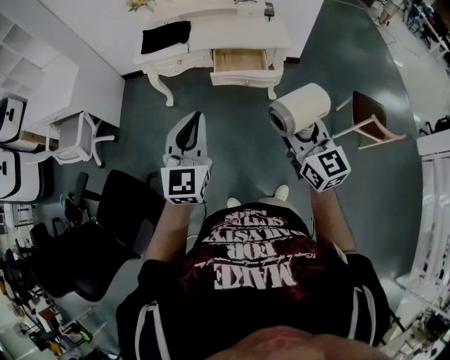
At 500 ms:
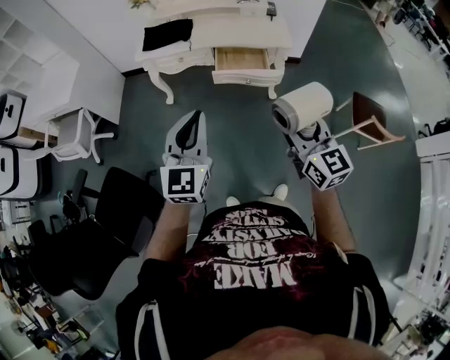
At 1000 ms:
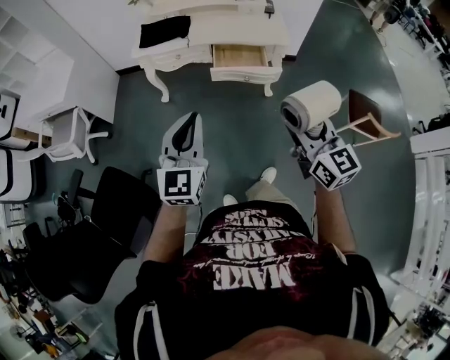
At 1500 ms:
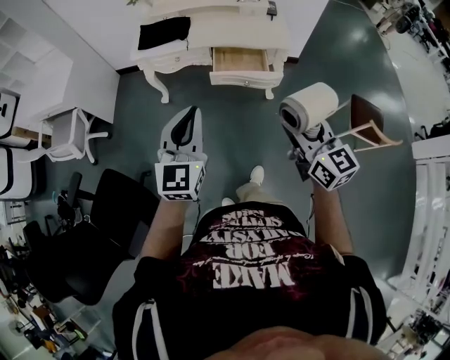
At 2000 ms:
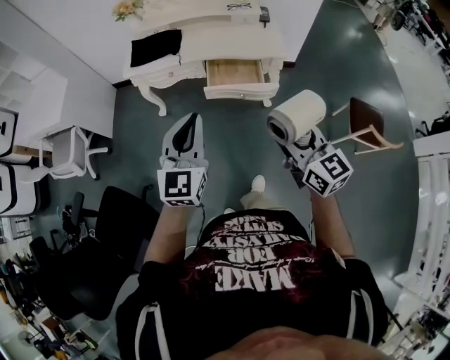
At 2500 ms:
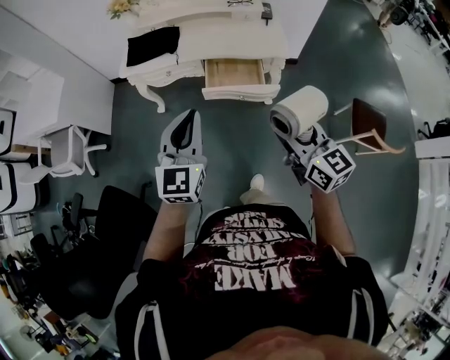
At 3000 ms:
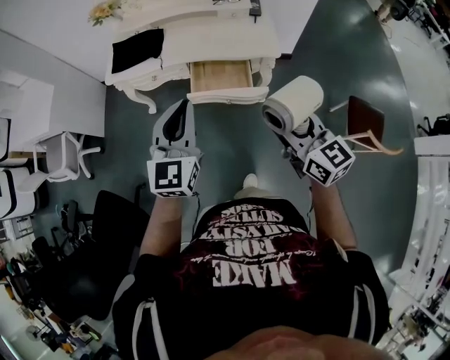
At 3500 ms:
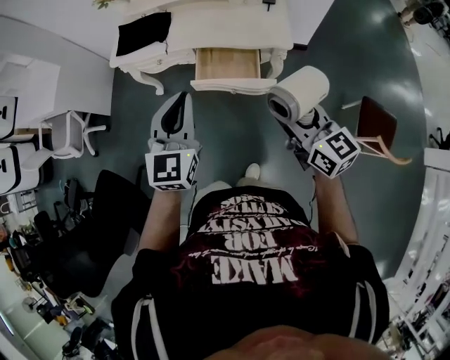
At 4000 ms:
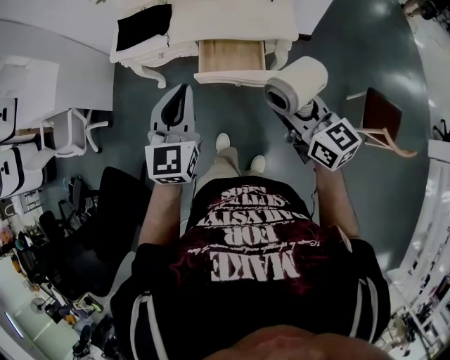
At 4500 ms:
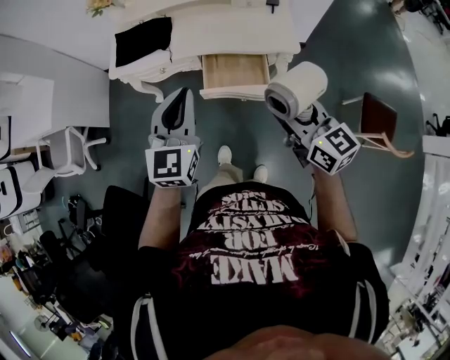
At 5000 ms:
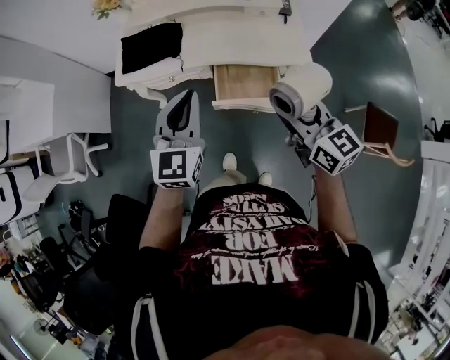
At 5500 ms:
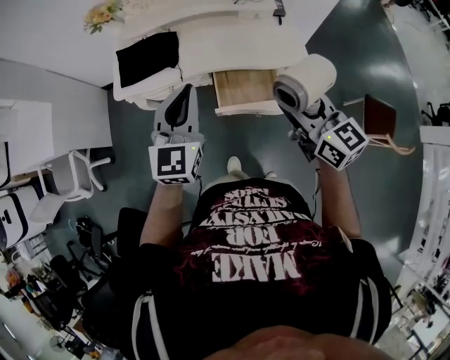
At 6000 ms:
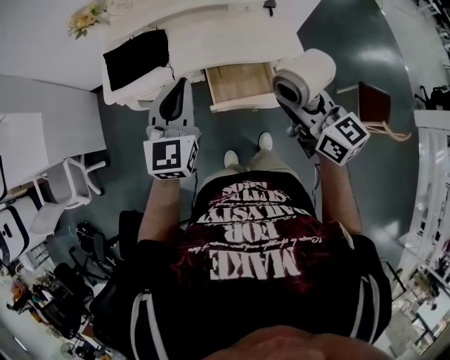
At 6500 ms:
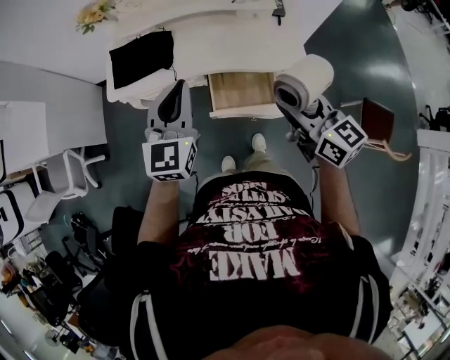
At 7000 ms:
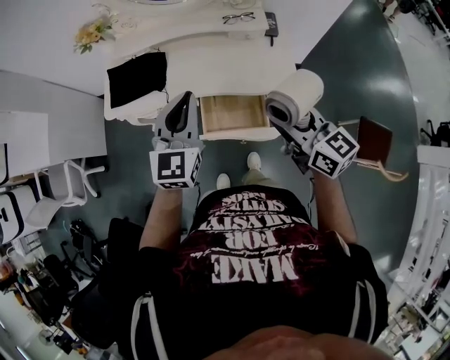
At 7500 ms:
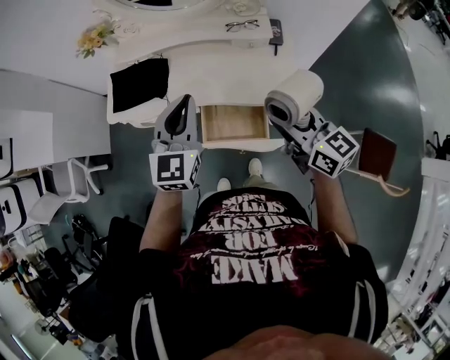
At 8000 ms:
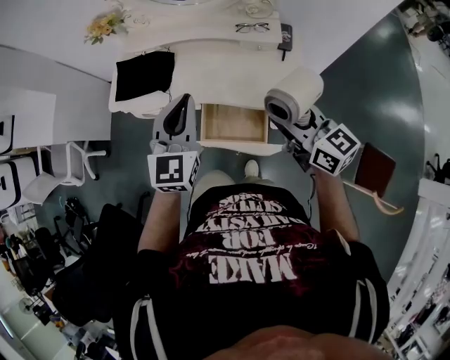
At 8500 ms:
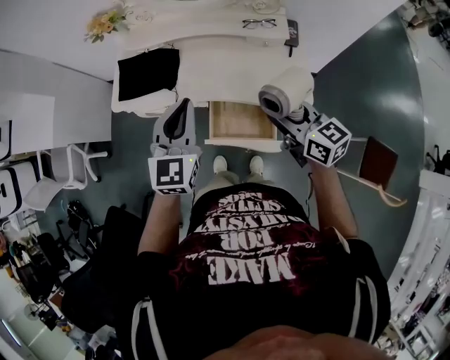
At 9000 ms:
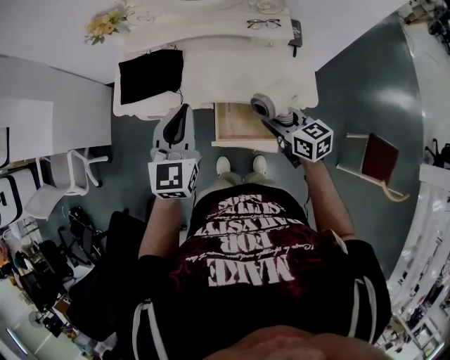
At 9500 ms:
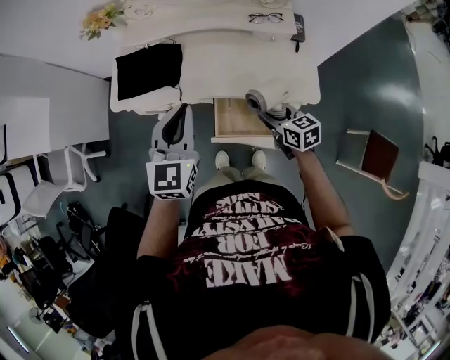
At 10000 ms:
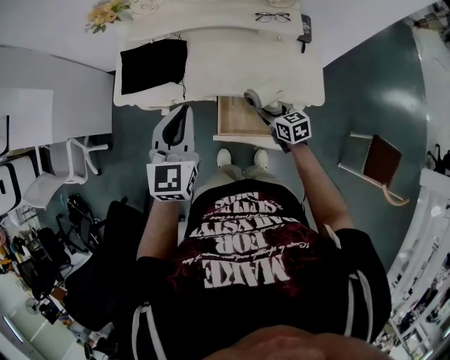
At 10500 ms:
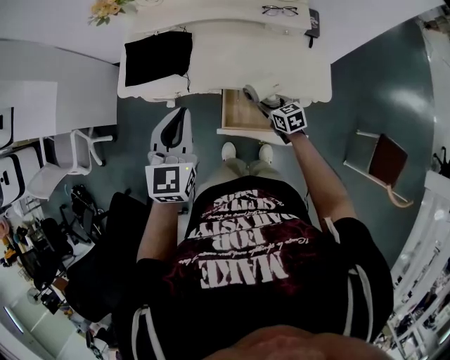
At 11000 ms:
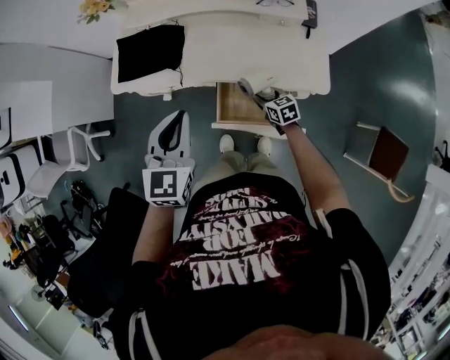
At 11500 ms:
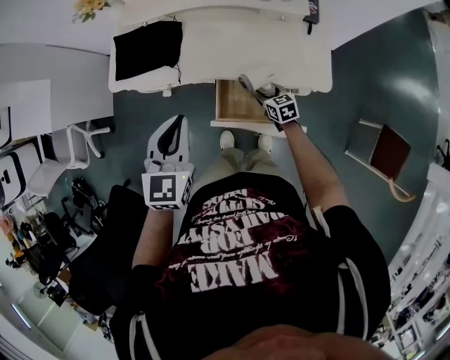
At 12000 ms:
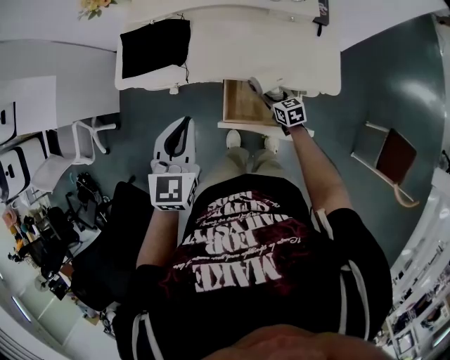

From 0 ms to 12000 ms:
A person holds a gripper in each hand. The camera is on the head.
From 0 ms to 2000 ms: Both grippers move forward, some 10 cm.
From 2000 ms to 4000 ms: The two grippers go about 15 cm forward and to the right.
From 4000 ms to 6000 ms: Both grippers move forward and to the left, approximately 20 cm.
From 6000 ms to 8000 ms: The two grippers go approximately 15 cm to the right and forward.
From 8000 ms to 10000 ms: The right gripper travels downward by roughly 30 cm, and swivels some 30 degrees, while the left gripper goes roughly 10 cm to the left and downward.
From 10000 ms to 12000 ms: The left gripper heads downward, covering about 5 cm. The right gripper is displaced downward by roughly 15 cm.

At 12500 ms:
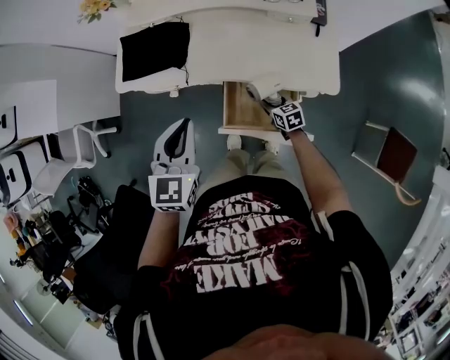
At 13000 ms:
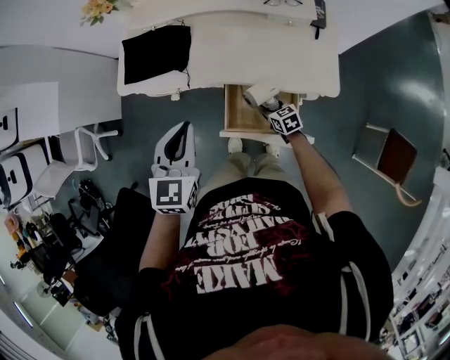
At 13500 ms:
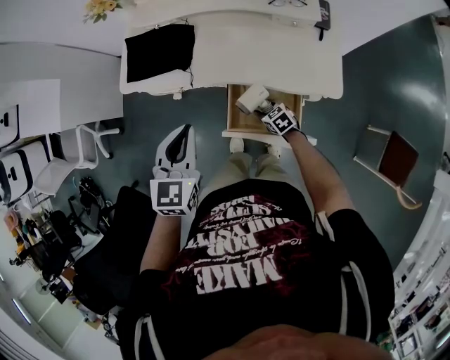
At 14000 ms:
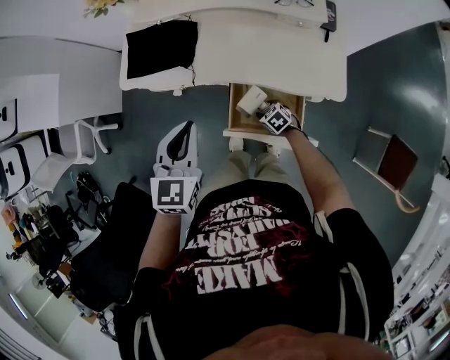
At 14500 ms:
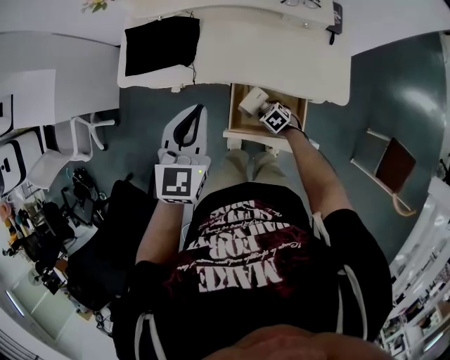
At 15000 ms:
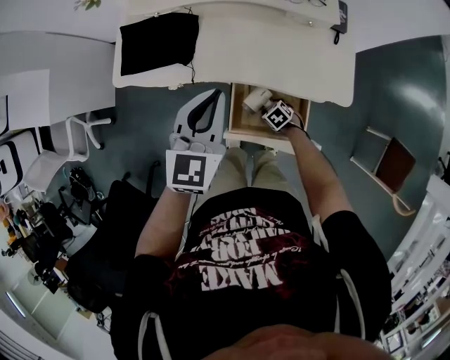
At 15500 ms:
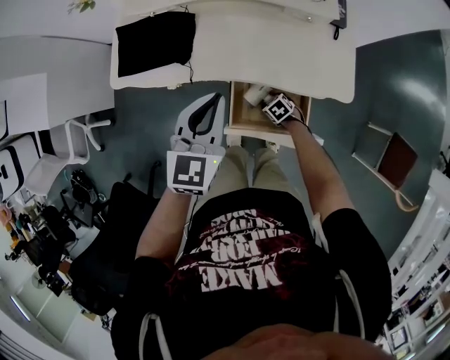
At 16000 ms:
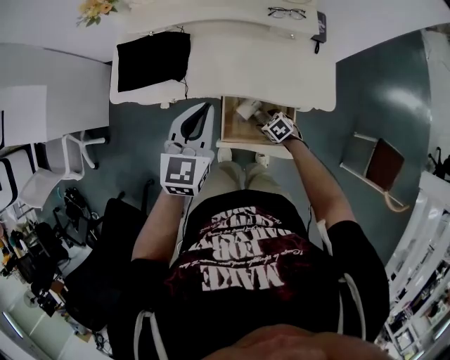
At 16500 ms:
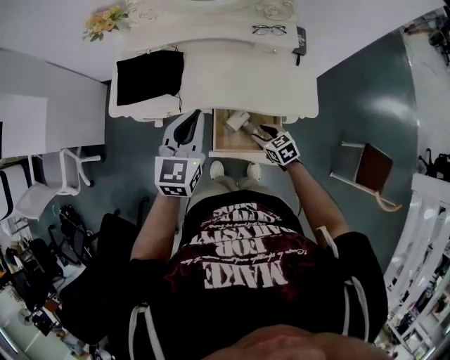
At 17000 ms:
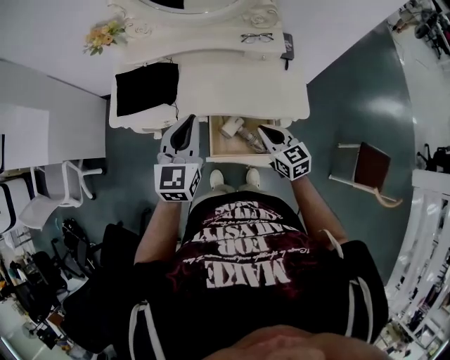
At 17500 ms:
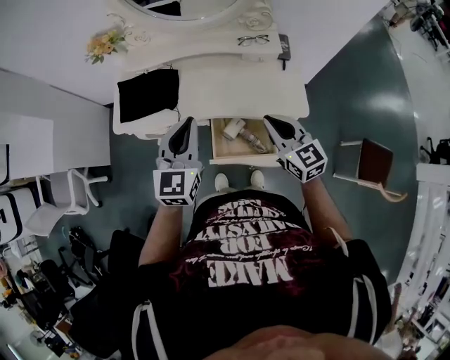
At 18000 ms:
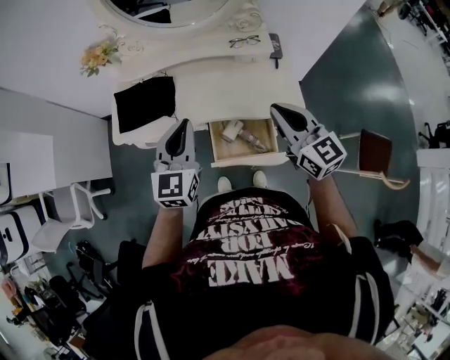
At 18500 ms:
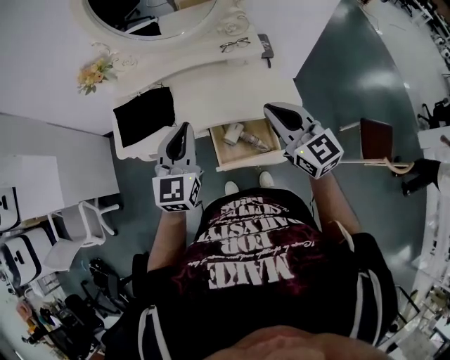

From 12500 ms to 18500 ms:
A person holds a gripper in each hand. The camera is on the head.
From 12500 ms to 14500 ms: The right gripper travels downward and to the left by approximately 10 cm, and rotates some 40 degrees.
From 14500 ms to 16500 ms: The right gripper goes about 15 cm upward, swivels approximately 20 degrees, and opens, then closes again.
From 16500 ms to 18500 ms: The right gripper goes about 35 cm upward, tips its fingers upward by approximately 40 degrees, and closes, while the left gripper goes approximately 10 cm upward.

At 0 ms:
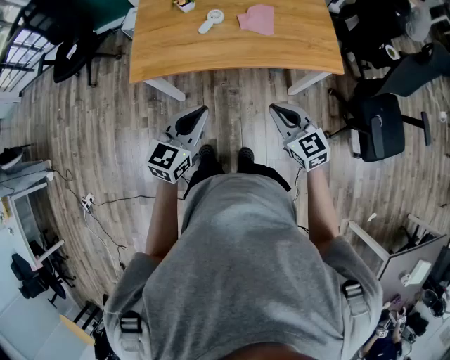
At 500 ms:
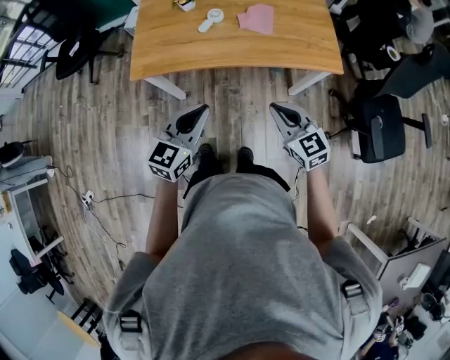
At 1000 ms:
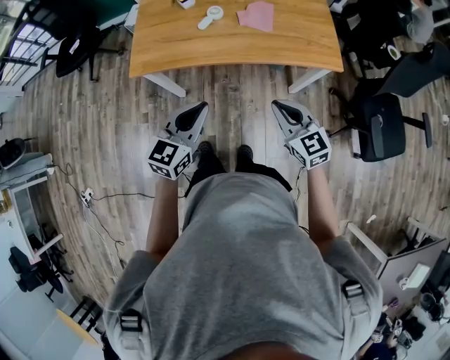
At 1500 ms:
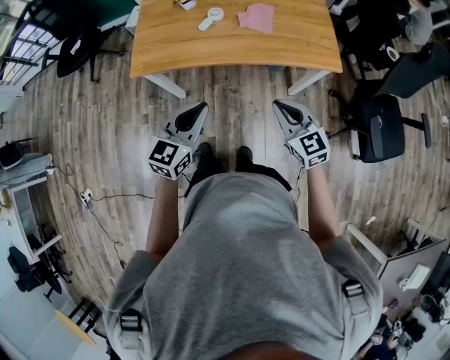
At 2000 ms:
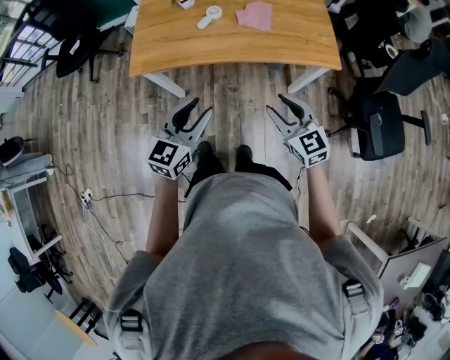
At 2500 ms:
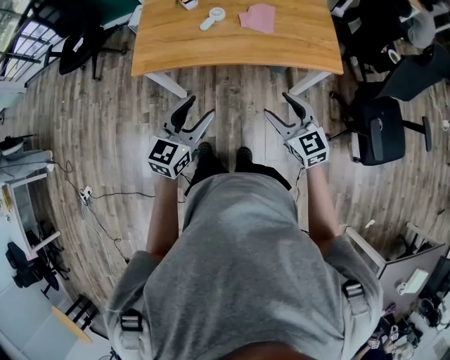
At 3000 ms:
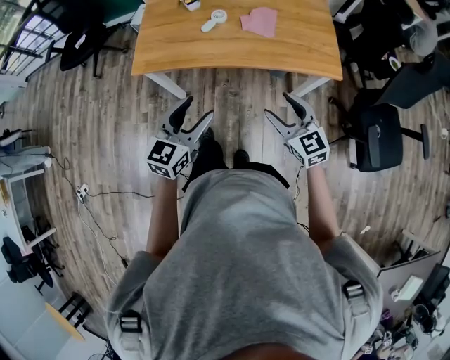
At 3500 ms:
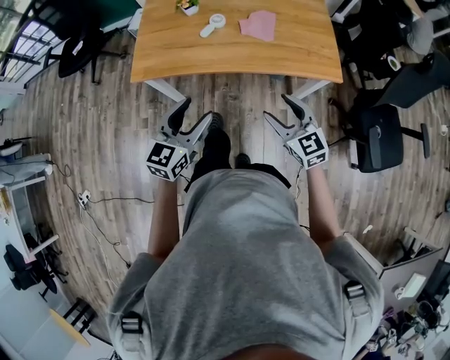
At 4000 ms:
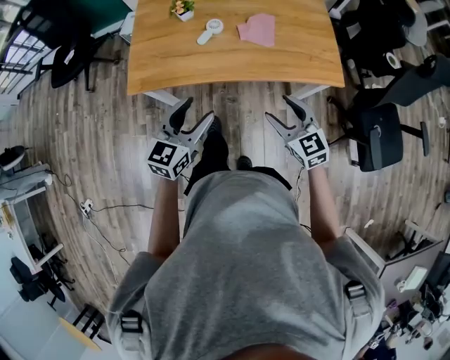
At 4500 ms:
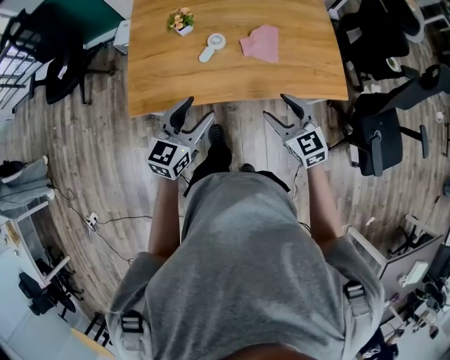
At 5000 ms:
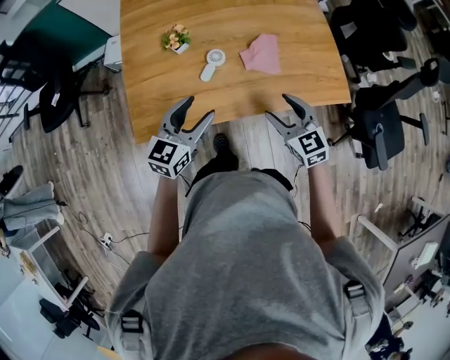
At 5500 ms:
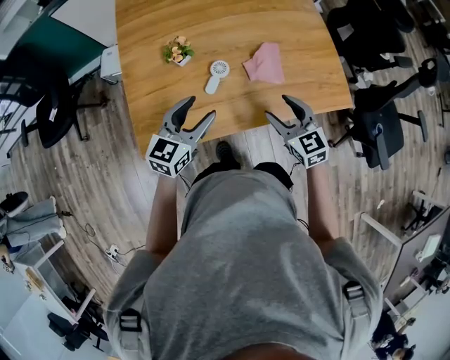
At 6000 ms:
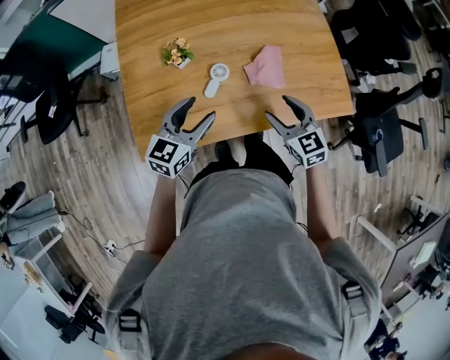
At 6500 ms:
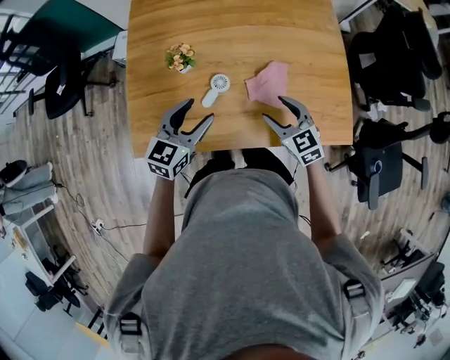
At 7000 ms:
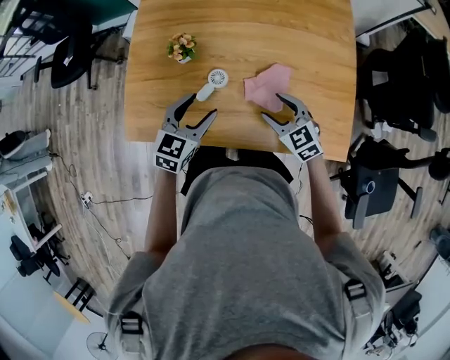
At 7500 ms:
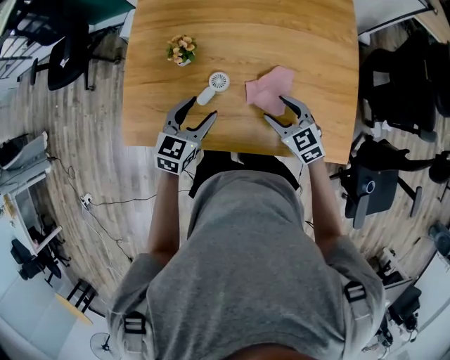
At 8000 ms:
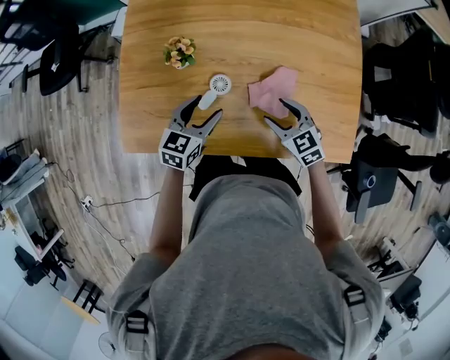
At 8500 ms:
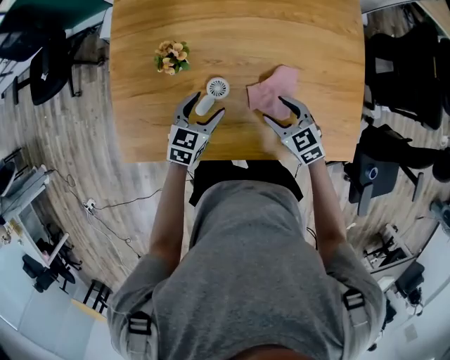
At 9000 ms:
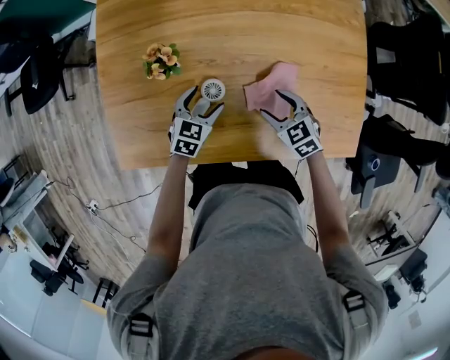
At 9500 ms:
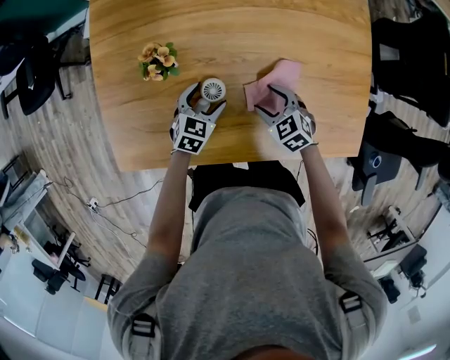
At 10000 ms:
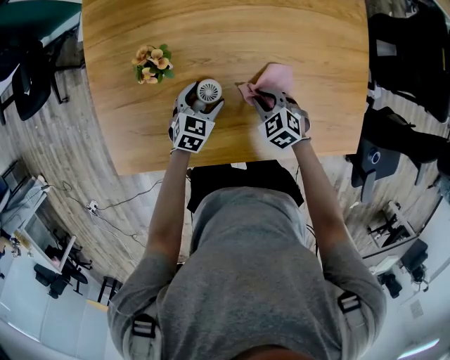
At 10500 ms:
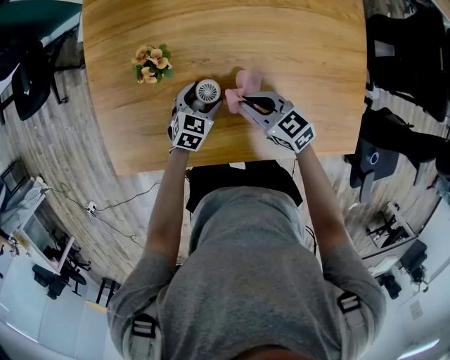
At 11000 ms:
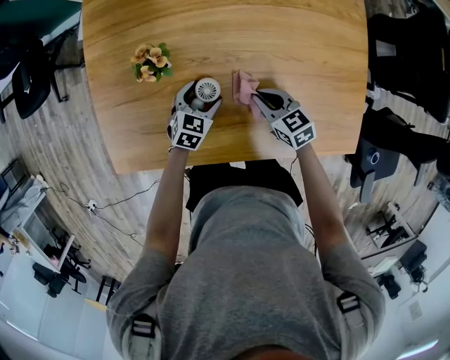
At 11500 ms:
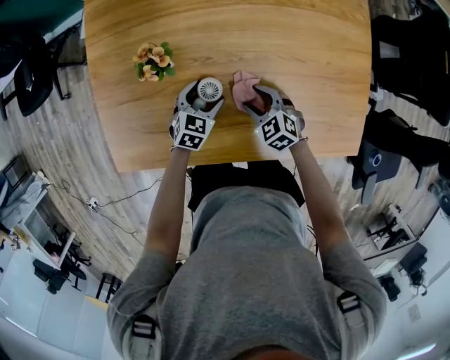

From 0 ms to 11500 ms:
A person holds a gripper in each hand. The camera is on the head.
From 0 ms to 2000 ms: The right gripper opens up; the left gripper opens.
From 2000 ms to 4000 ms: The grippers both shift forward by roughly 10 cm. The right gripper opens up.
From 4000 ms to 6000 ms: Both grippers move forward, roughly 25 cm.
From 6000 ms to 7500 ms: The right gripper moves forward and downward, about 10 cm, and changes its angle by about 30 degrees; the left gripper shifts roughly 10 cm to the right, downward and forward, and changes its angle by some 20 degrees.
From 7500 ms to 9500 ms: The two grippers go roughly 20 cm downward and forward. The left gripper rotates approximately 20 degrees.
From 9500 ms to 11500 ms: The right gripper goes upward and returns, about 5 cm each way, and closes, then opens again.
